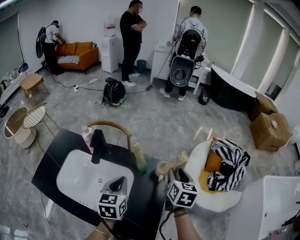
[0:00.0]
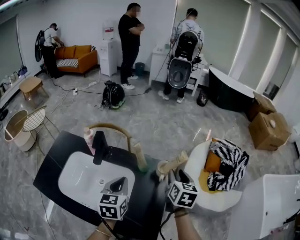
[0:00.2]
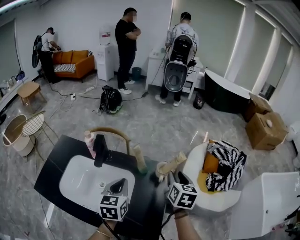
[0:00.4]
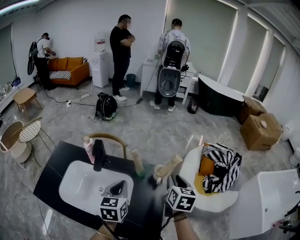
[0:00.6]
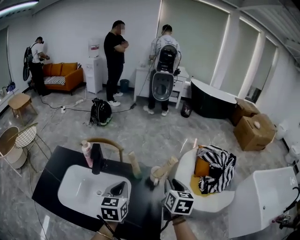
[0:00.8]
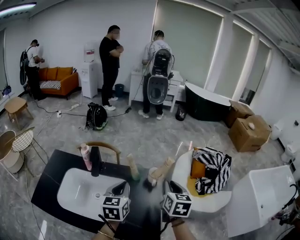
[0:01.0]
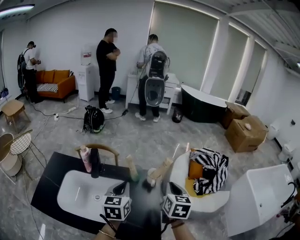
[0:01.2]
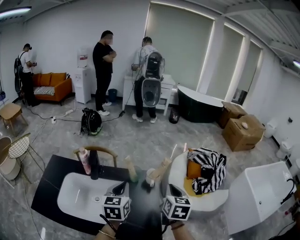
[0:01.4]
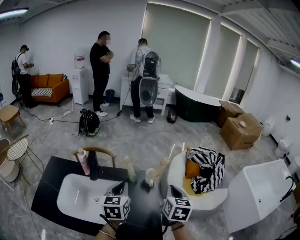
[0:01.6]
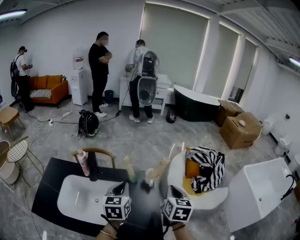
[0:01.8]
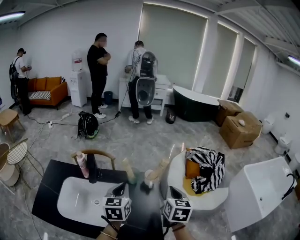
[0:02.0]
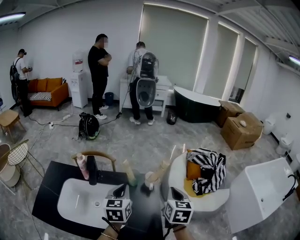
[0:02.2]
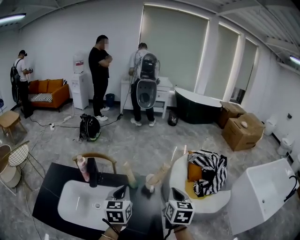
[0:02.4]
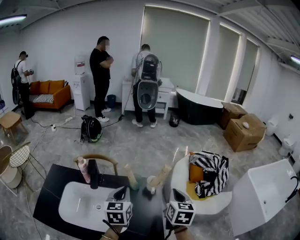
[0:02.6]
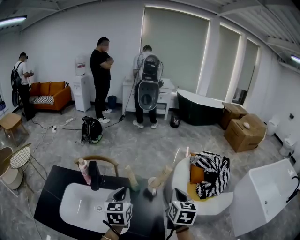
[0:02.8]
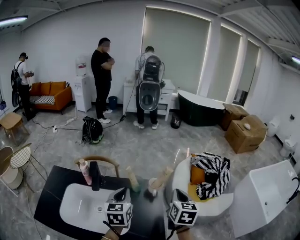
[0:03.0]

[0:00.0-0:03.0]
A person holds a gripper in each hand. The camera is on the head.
0.0 to 1.6 s: The right gripper heads backward and upward, covering about 15 cm, and closes. Meanwhile the left gripper moves upward, roughly 5 cm.
1.6 to 3.0 s: The grippers move only a little.

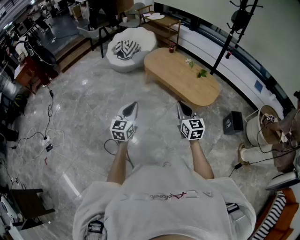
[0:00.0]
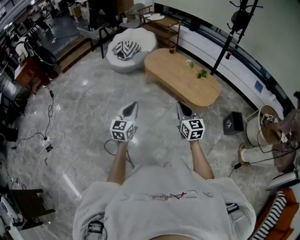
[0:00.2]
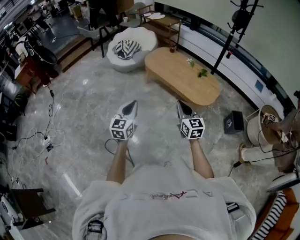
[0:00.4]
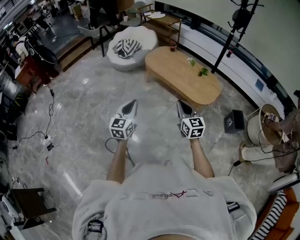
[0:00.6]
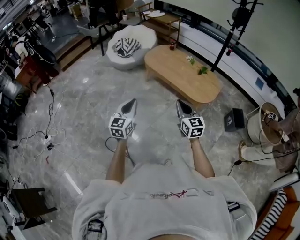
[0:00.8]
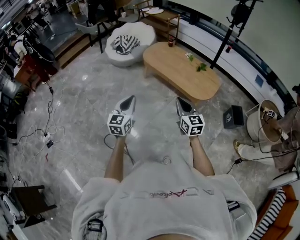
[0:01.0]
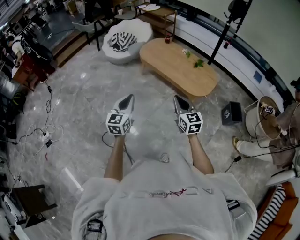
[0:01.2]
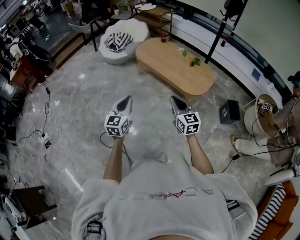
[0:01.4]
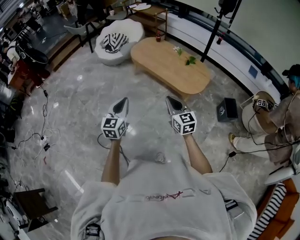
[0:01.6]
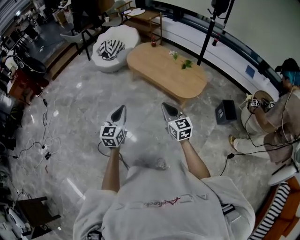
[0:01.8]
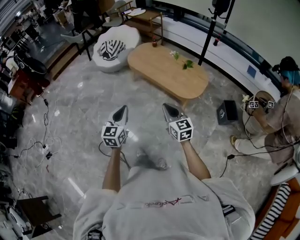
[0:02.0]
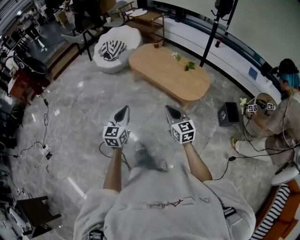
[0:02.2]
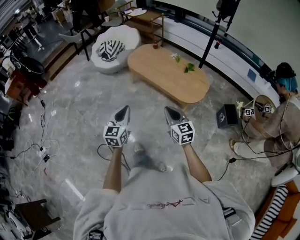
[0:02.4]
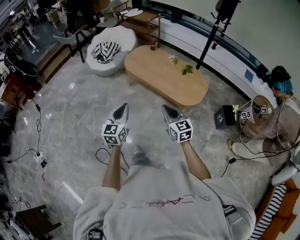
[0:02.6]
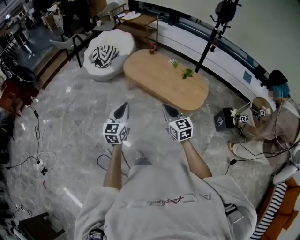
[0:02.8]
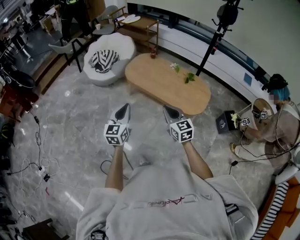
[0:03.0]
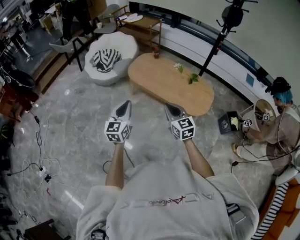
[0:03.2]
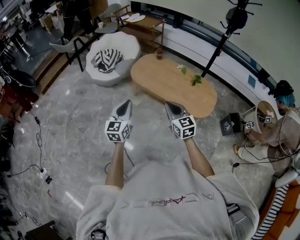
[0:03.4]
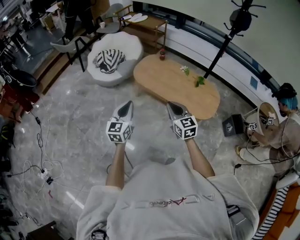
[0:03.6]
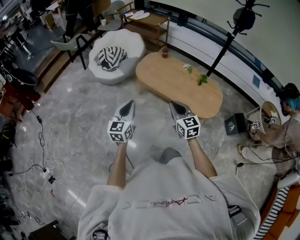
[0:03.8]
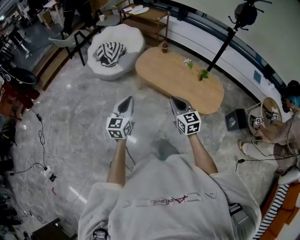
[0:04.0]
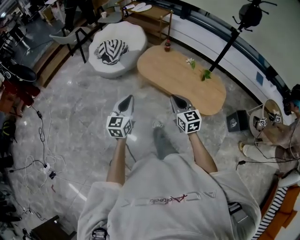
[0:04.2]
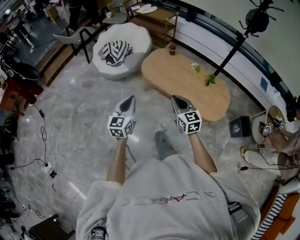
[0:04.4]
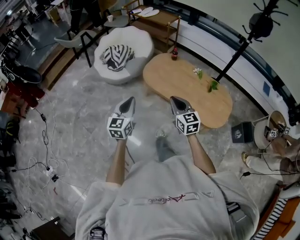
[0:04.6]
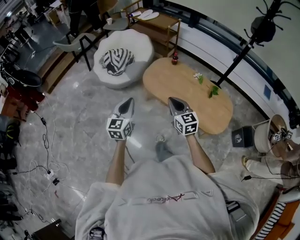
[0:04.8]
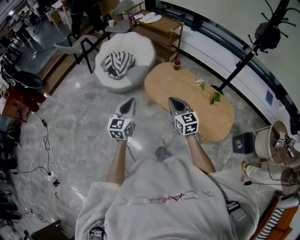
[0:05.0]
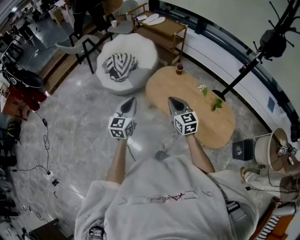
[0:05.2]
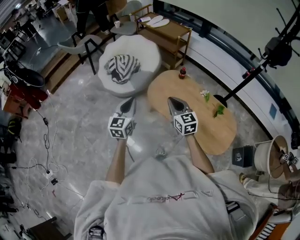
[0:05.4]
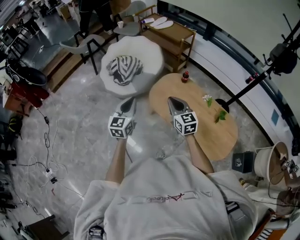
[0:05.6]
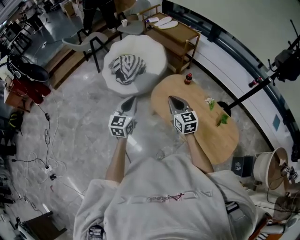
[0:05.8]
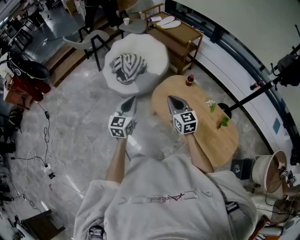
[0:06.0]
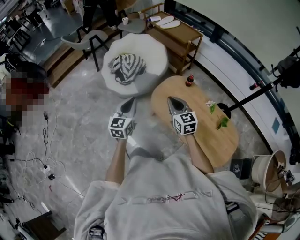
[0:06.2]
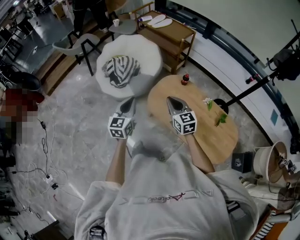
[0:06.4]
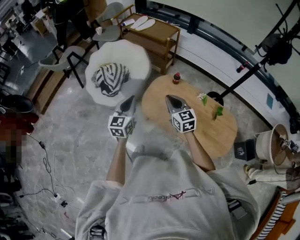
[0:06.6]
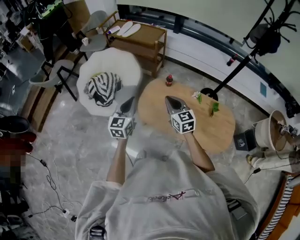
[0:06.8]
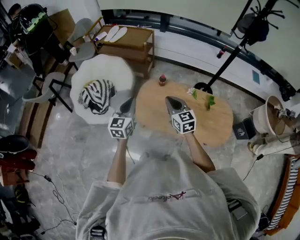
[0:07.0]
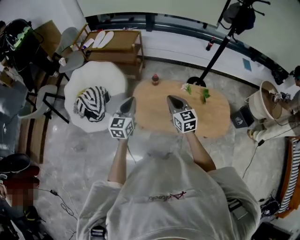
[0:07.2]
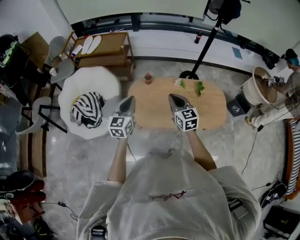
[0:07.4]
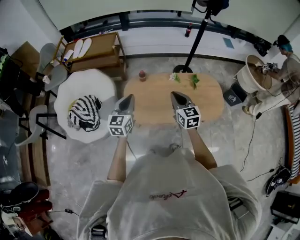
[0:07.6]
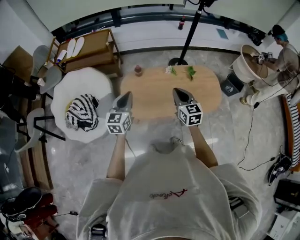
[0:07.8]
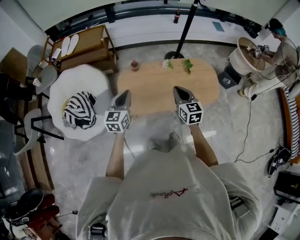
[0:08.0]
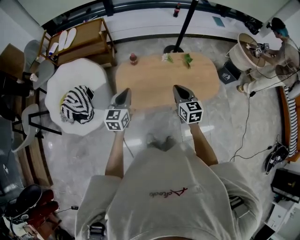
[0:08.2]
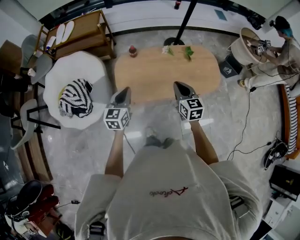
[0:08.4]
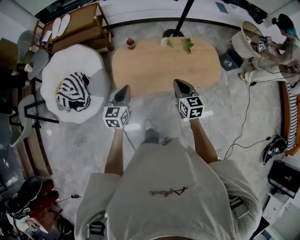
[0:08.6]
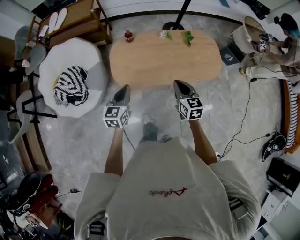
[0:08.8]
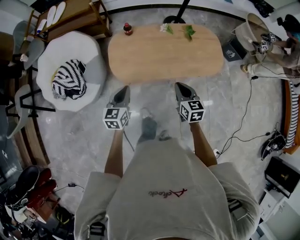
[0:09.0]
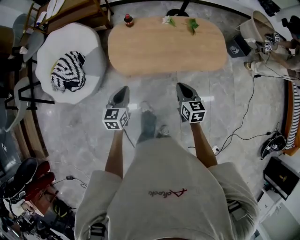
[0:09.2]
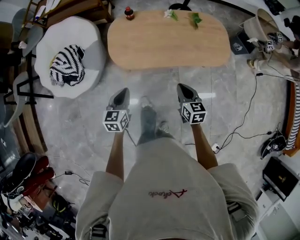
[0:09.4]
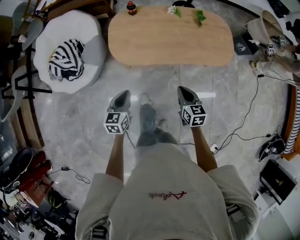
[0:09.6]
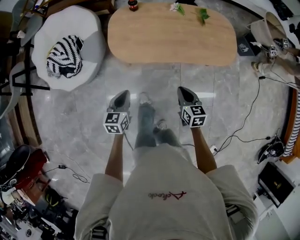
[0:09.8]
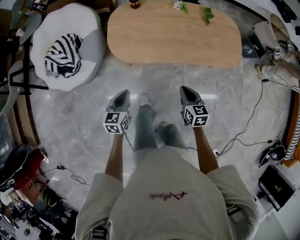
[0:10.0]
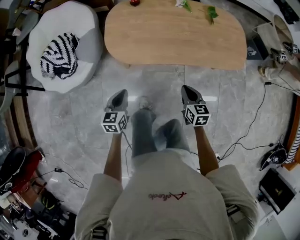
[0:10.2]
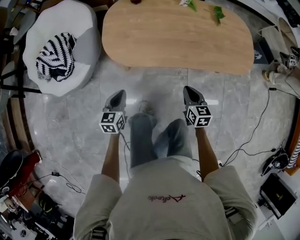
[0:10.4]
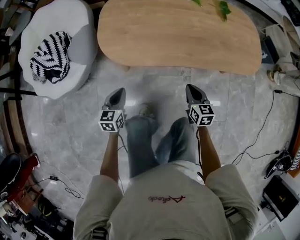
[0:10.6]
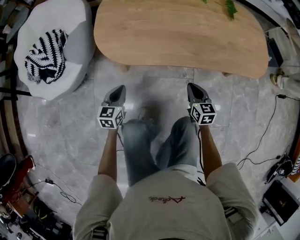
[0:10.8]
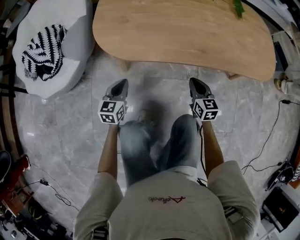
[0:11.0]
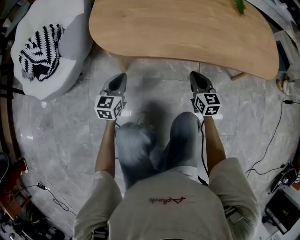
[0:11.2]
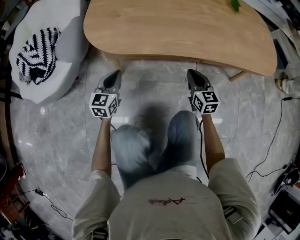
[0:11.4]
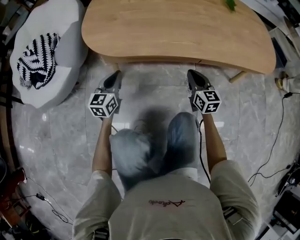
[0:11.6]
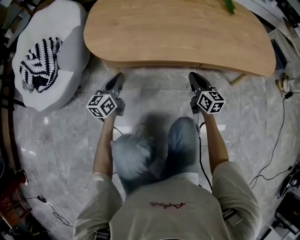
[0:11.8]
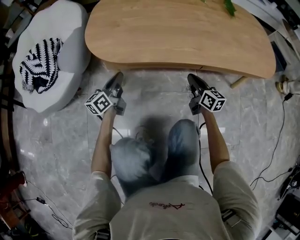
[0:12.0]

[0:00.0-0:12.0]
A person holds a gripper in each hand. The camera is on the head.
0.0 to 1.6 s: The two grippers go some 10 cm to the right.
1.6 to 3.0 s: The left gripper heads forward, covering approximately 25 cm. Meanwhile the right gripper travels forward and to the left by some 25 cm.
3.0 to 4.4 s: The two grippers go about 20 cm forward and to the left.
4.4 to 6.0 s: Both grippers move forward, roughly 40 cm.
6.0 to 7.6 s: The left gripper ends up approximately 20 cm from where it was, and changes its angle by about 50 degrees; the right gripper moves some 10 cm, and changes its angle by about 50 degrees.
7.6 to 9.0 s: The left gripper is displaced downward and backward by approximately 20 cm, while the right gripper heads downward, backward and to the right, covering roughly 20 cm.
9.0 to 10.4 s: Both grippers move downward, approximately 35 cm.
10.4 to 12.0 s: The right gripper moves downward, approximately 30 cm, and changes its angle by approximately 30 degrees. Meanwhile the left gripper moves downward and forward, approximately 30 cm, and swivels about 40 degrees.

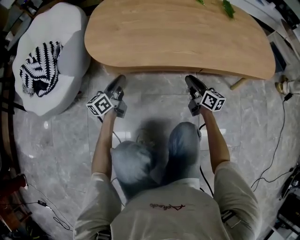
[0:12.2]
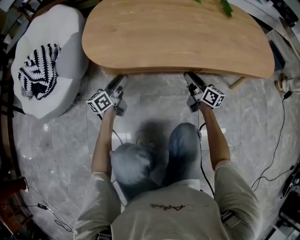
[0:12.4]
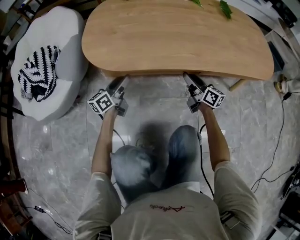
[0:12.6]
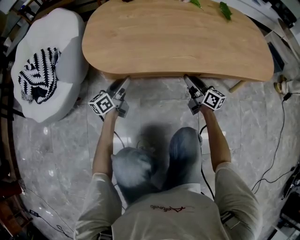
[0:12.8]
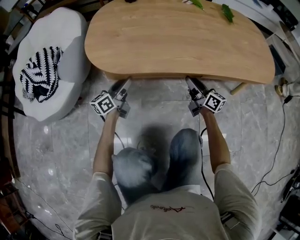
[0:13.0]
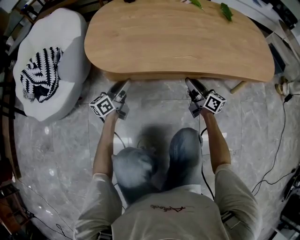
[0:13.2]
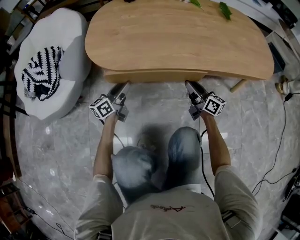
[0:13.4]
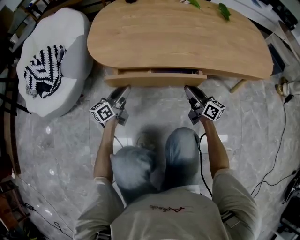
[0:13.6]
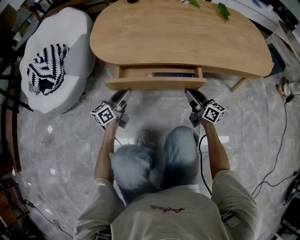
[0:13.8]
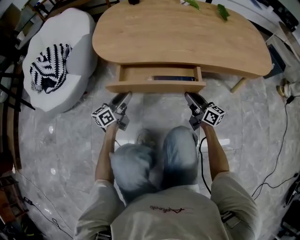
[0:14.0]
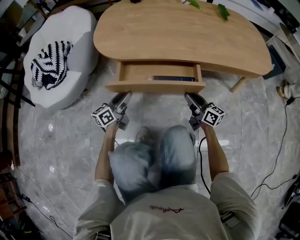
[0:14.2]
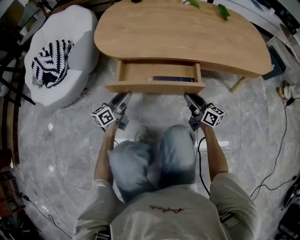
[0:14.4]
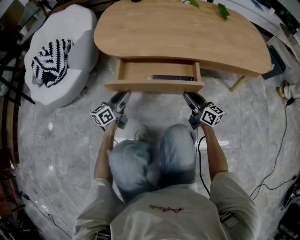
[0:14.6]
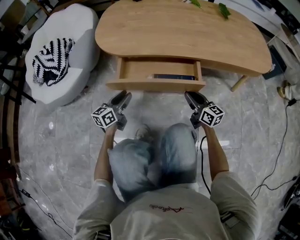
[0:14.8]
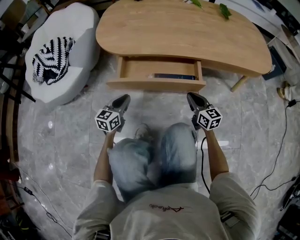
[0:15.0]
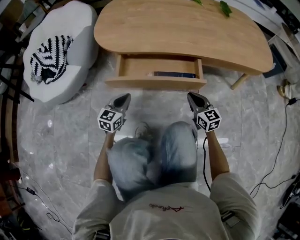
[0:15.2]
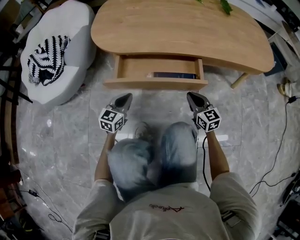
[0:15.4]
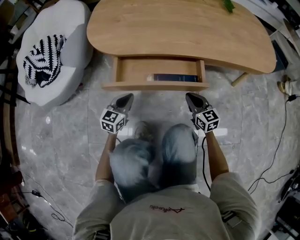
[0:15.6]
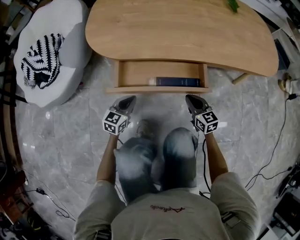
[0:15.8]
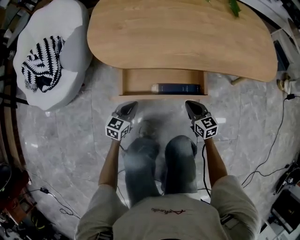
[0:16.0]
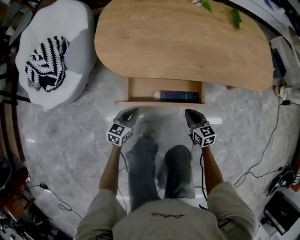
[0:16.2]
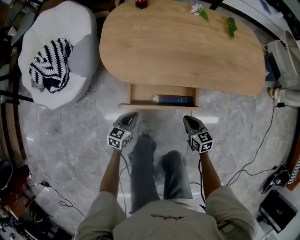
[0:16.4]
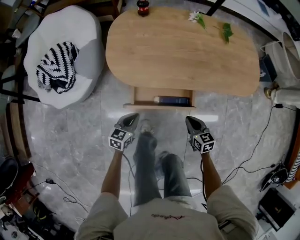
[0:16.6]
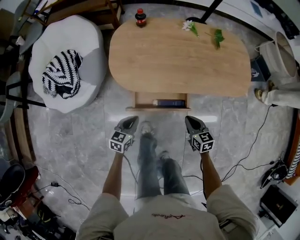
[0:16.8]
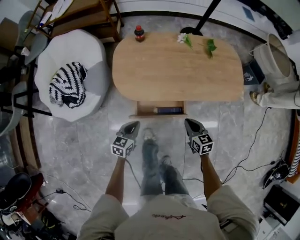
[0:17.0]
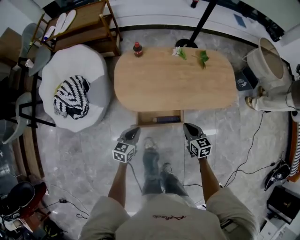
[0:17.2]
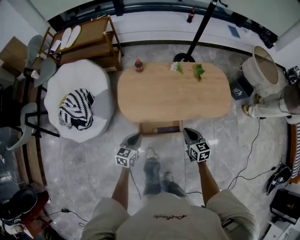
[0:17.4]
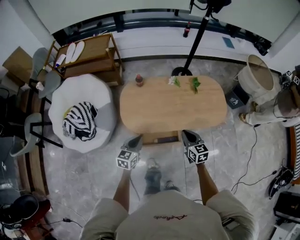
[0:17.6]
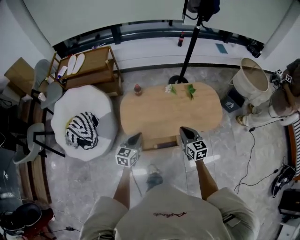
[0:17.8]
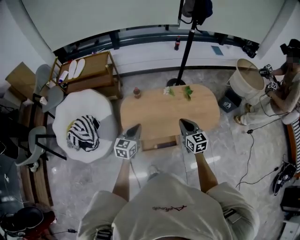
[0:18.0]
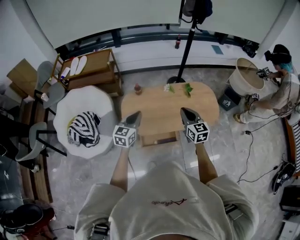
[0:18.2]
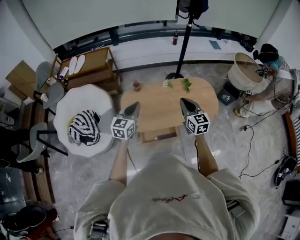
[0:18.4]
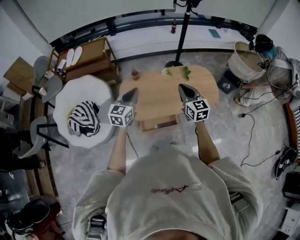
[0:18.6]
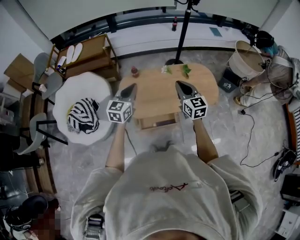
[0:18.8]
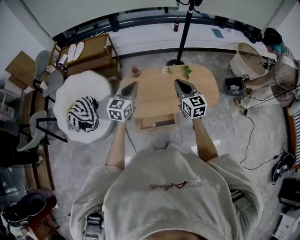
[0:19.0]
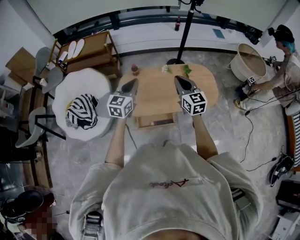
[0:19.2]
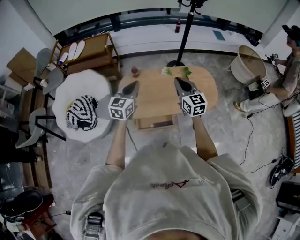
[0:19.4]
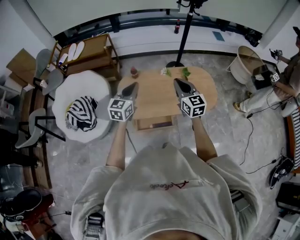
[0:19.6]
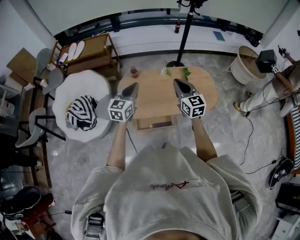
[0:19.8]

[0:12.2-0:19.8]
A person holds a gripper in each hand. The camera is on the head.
12.2 to 13.8 s: Both grippers move backward, some 10 cm. The left gripper opens its fingers.
13.8 to 15.2 s: Both grippers travel together backward, some 5 cm. The left gripper changes its angle by some 40 degrees, and closes its fingers. The right gripper swivels approximately 40 degrees, and closes.
15.2 to 16.8 s: The grippers both shift upward by roughly 30 cm. The left gripper turns by about 20 degrees. Meanwhile the right gripper changes its angle by approximately 20 degrees.
16.8 to 18.2 s: Both grippers move upward, about 50 cm. The left gripper swivels some 20 degrees, while the right gripper rotates some 30 degrees.
18.2 to 19.8 s: The right gripper heads upward, covering approximately 5 cm. Meanwhile the left gripper shifts by some 5 cm.

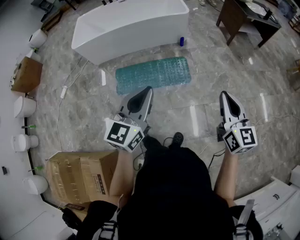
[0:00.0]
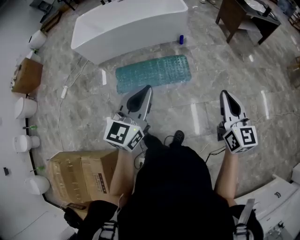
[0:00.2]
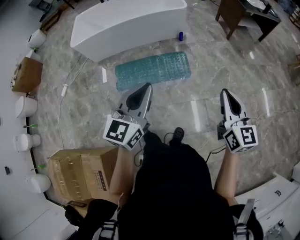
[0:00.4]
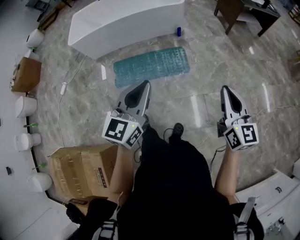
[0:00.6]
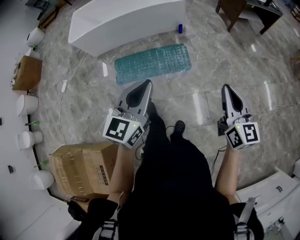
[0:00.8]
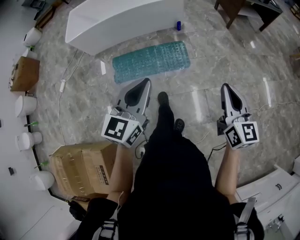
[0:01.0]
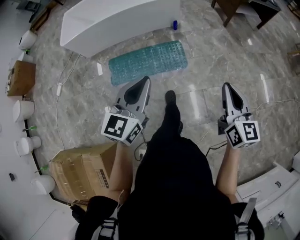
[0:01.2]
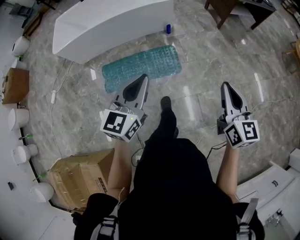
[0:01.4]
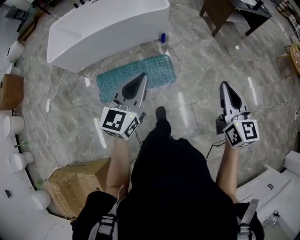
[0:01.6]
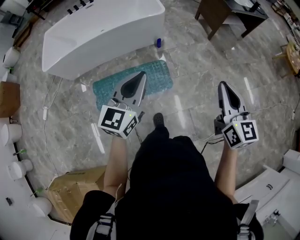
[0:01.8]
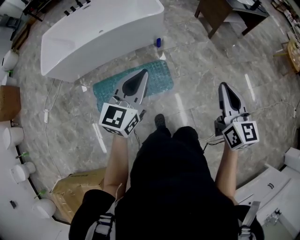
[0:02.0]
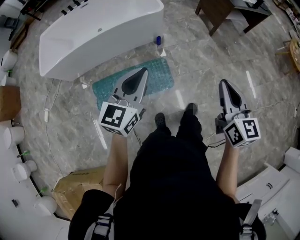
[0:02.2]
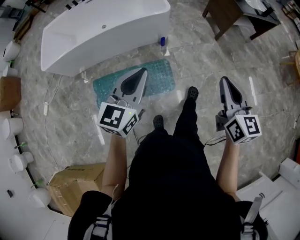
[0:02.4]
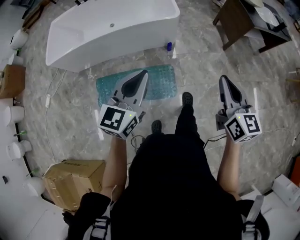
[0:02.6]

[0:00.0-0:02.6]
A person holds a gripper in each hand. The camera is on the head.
0.0 to 1.2 s: The right gripper changes place by about 5 cm, while the left gripper moves forward, some 5 cm.
1.2 to 2.6 s: Both grippers move forward, some 40 cm.
